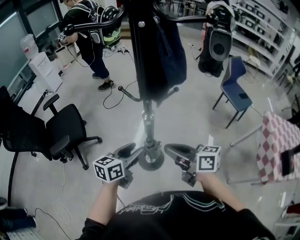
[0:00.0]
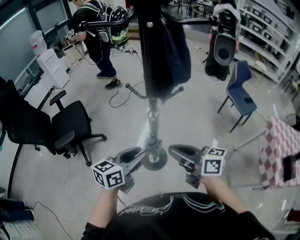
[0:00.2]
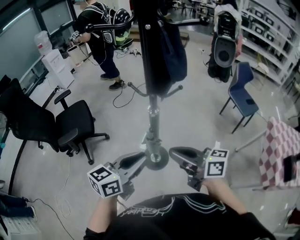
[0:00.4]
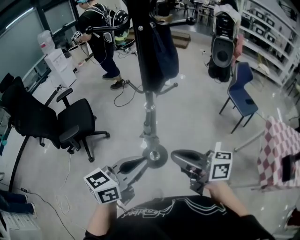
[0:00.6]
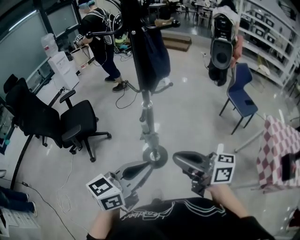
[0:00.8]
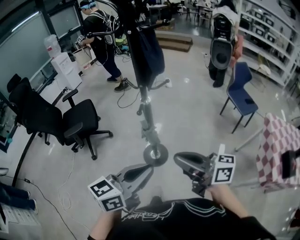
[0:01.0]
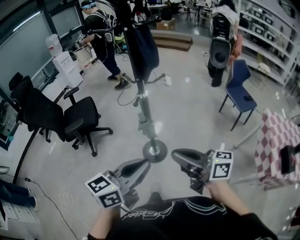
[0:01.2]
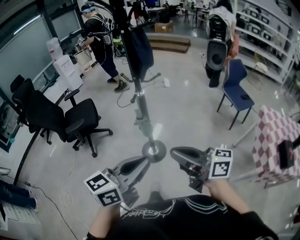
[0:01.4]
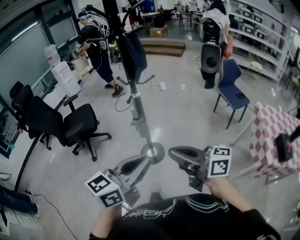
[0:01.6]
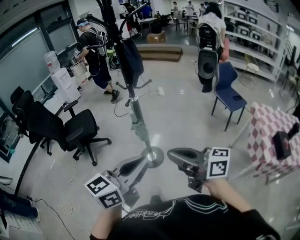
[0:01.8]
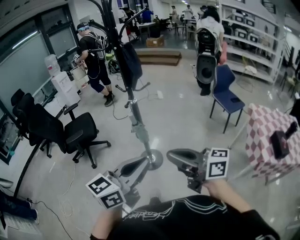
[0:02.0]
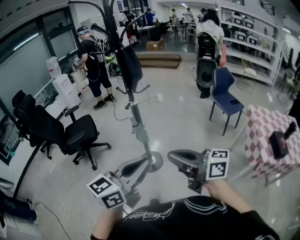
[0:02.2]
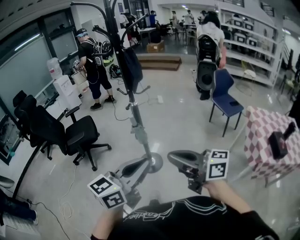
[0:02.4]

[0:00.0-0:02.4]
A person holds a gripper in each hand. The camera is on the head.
0:00.0 to 0:01.2: The two grippers go approximately 30 cm backward and upward. The left gripper closes.
0:01.2 to 0:02.4: Both grippers travel together backward and upward, some 15 cm.

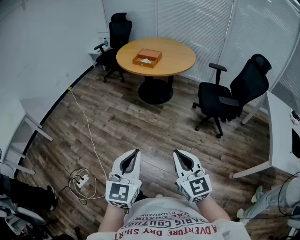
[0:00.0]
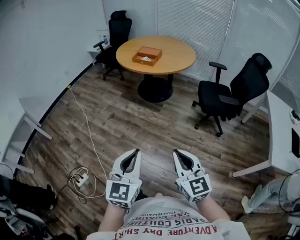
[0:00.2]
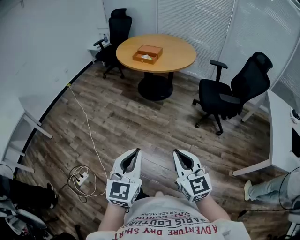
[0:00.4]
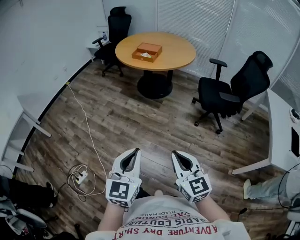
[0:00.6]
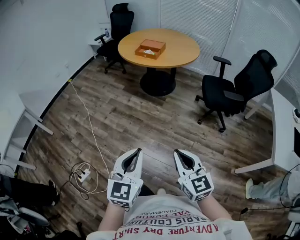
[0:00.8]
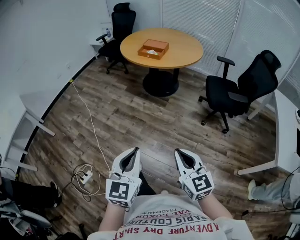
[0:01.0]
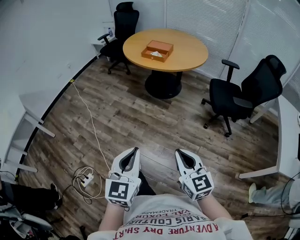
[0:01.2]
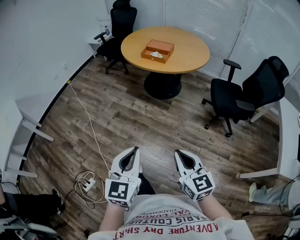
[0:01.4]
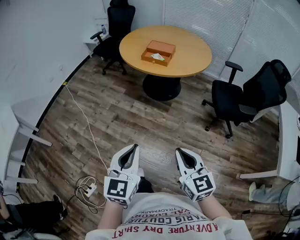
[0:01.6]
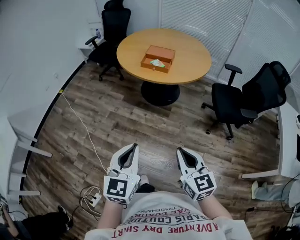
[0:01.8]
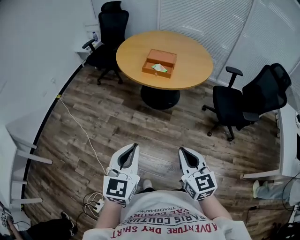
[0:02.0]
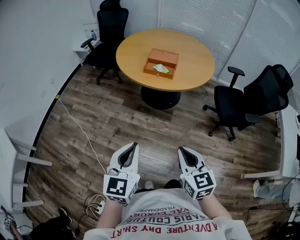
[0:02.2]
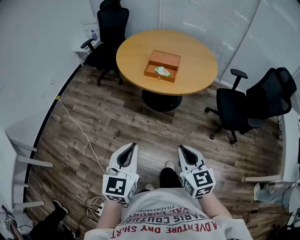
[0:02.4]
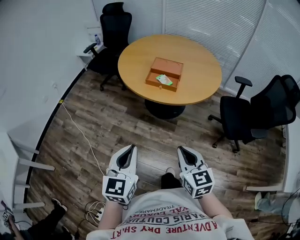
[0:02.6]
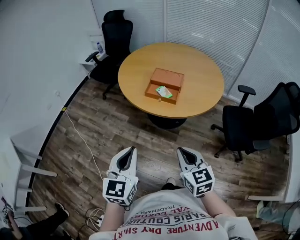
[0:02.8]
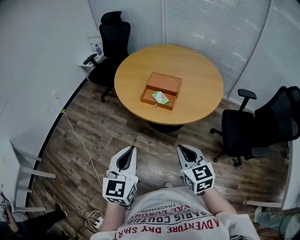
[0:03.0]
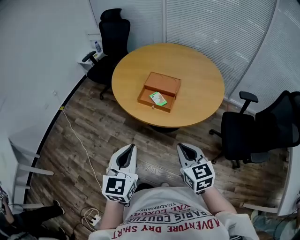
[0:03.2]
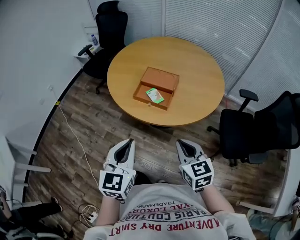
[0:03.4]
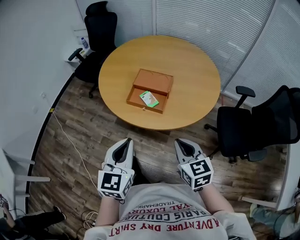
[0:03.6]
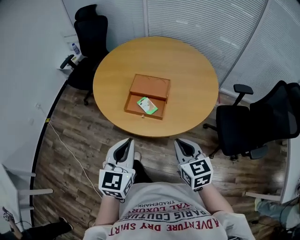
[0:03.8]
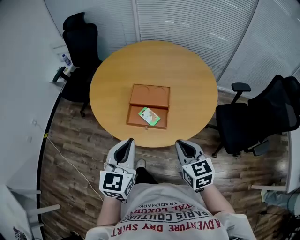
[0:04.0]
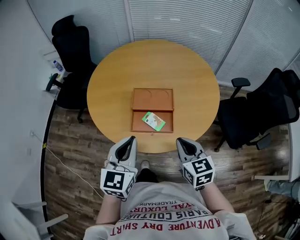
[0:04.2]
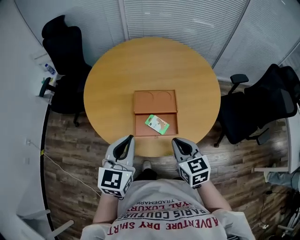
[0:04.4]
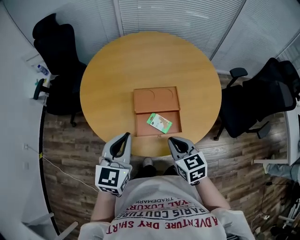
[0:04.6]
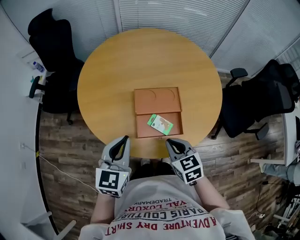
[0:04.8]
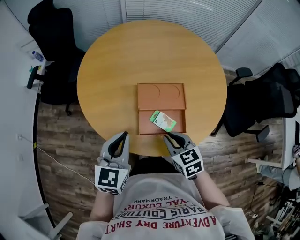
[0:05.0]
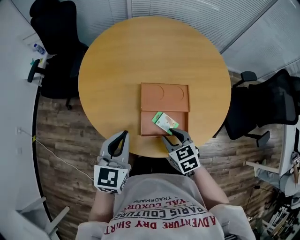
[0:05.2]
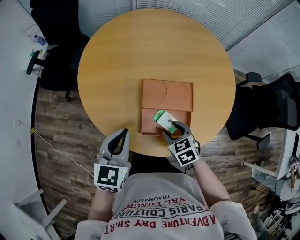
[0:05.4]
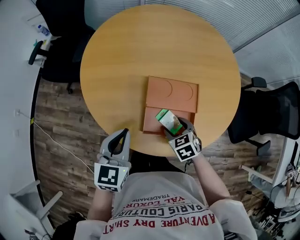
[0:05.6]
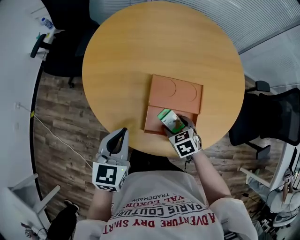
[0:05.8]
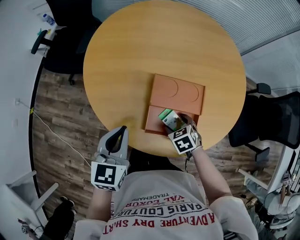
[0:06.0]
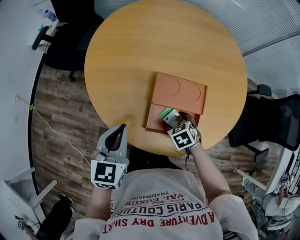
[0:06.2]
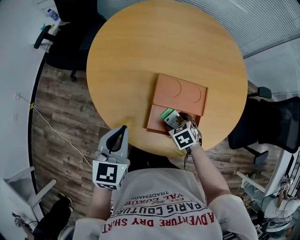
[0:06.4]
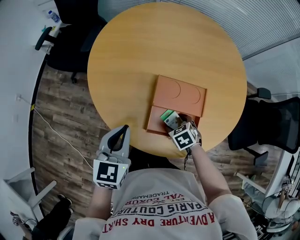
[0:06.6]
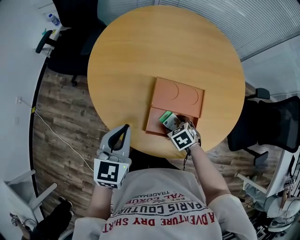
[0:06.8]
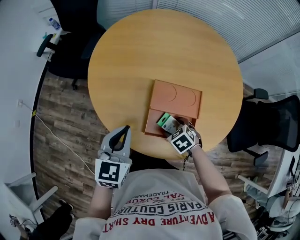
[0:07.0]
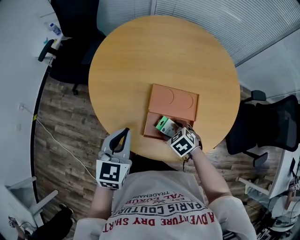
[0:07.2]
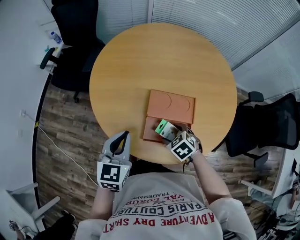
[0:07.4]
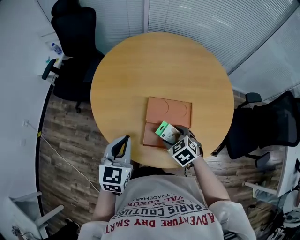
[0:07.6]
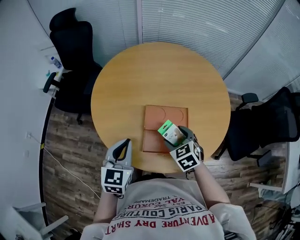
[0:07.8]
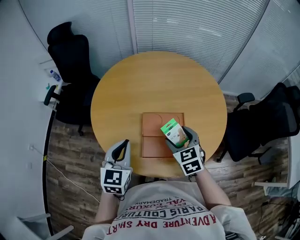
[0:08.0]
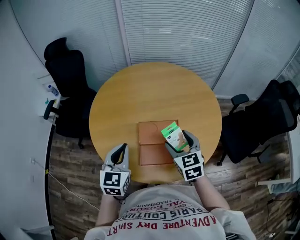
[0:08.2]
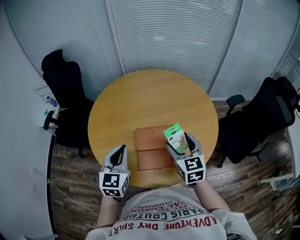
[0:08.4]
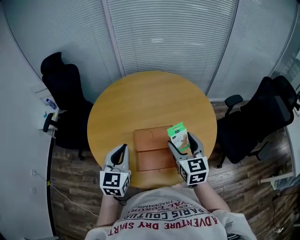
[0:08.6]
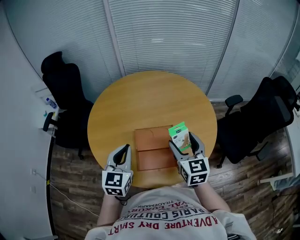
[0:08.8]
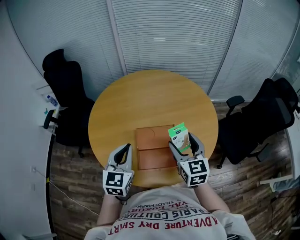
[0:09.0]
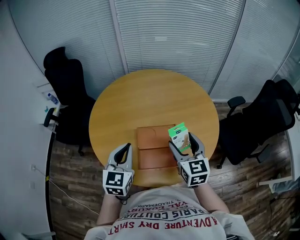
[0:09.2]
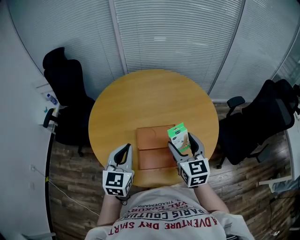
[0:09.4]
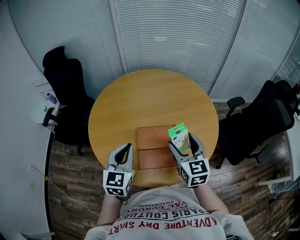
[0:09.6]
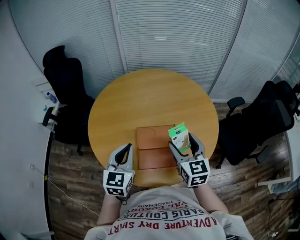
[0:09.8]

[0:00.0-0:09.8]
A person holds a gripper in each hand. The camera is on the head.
0:00.0 to 0:01.4: Both grippers travel together forward and to the left, roughly 20 cm.
0:01.4 to 0:02.8: The pair of grippers is taken forward, roughly 40 cm.
0:02.8 to 0:04.2: Both grippers move forward, some 35 cm. The left gripper changes its angle by about 20 degrees.
0:04.2 to 0:05.6: The right gripper heads downward, forward and to the left, covering roughly 25 cm, tips its fingers downward by some 30 degrees, and opens; the left gripper is displaced forward, to the left and downward by some 20 cm.
0:05.6 to 0:07.0: There are only small adjustments of the grippers.
0:07.0 to 0:08.4: The left gripper moves upward and to the right, roughly 10 cm. Meanwhile the right gripper goes some 30 cm upward, and points its fingers roughly 50 degrees further upward.
0:08.4 to 0:09.8: The grippers move only a little.

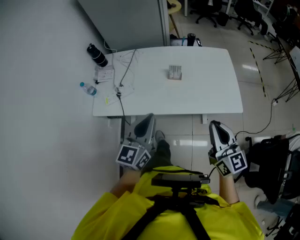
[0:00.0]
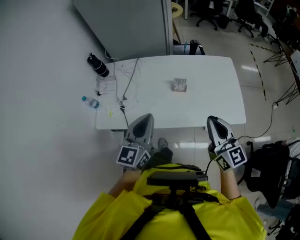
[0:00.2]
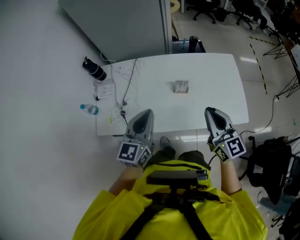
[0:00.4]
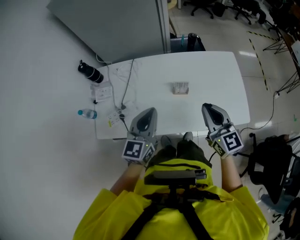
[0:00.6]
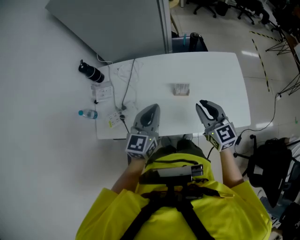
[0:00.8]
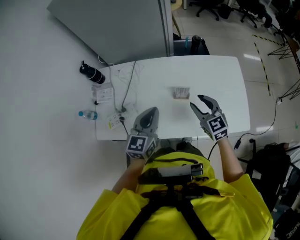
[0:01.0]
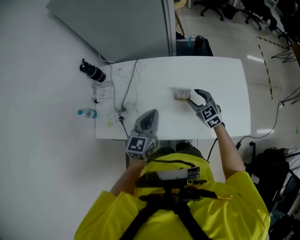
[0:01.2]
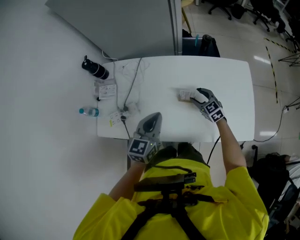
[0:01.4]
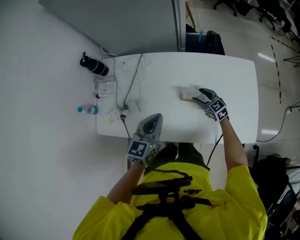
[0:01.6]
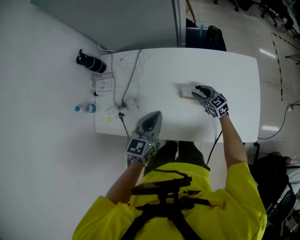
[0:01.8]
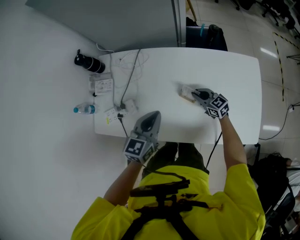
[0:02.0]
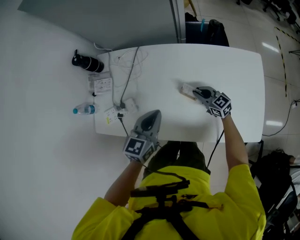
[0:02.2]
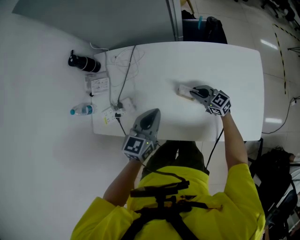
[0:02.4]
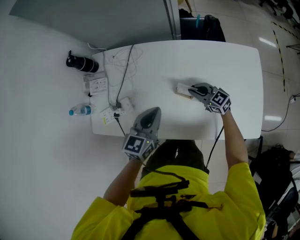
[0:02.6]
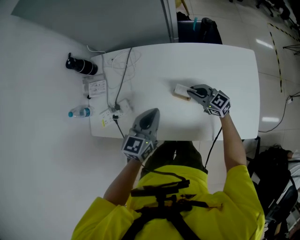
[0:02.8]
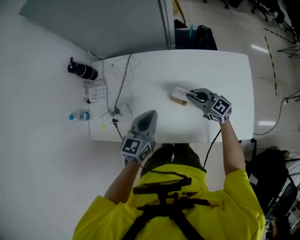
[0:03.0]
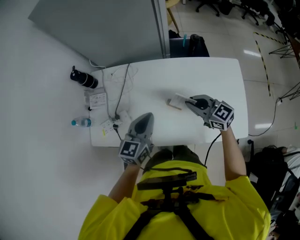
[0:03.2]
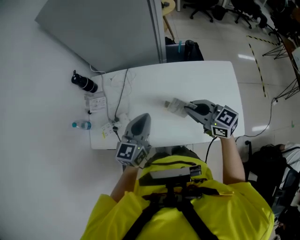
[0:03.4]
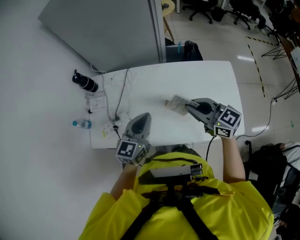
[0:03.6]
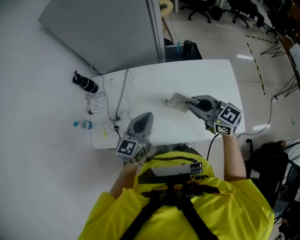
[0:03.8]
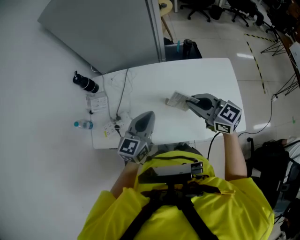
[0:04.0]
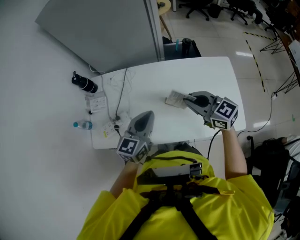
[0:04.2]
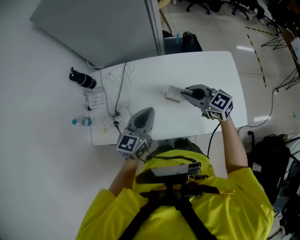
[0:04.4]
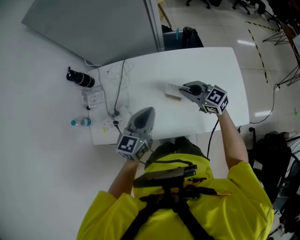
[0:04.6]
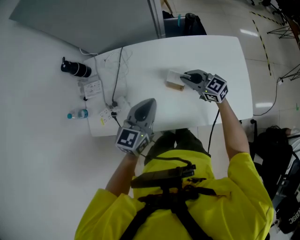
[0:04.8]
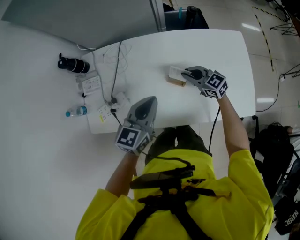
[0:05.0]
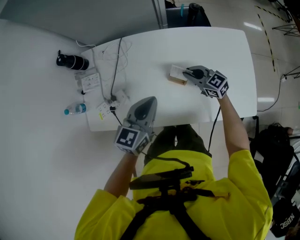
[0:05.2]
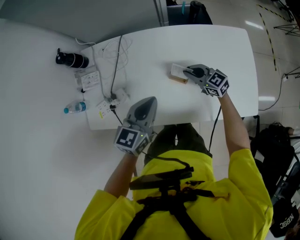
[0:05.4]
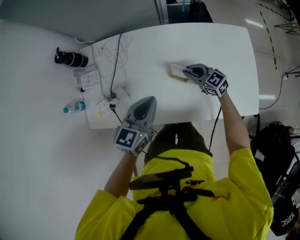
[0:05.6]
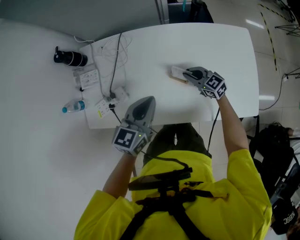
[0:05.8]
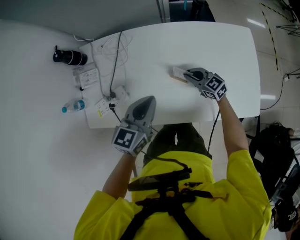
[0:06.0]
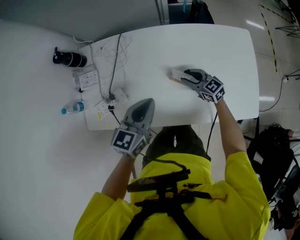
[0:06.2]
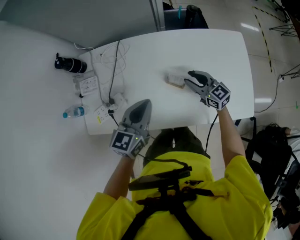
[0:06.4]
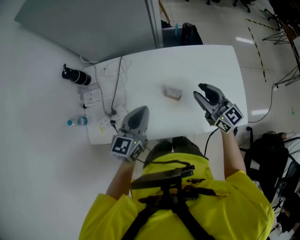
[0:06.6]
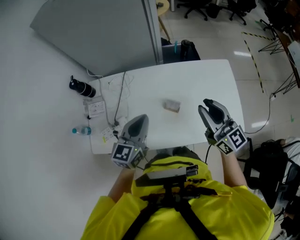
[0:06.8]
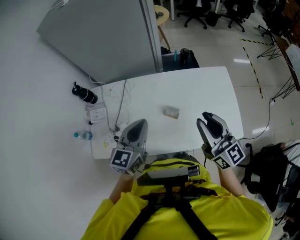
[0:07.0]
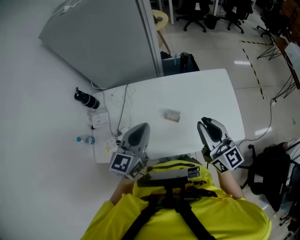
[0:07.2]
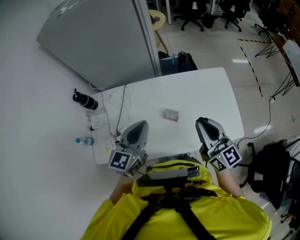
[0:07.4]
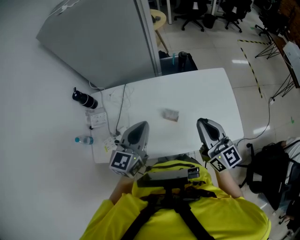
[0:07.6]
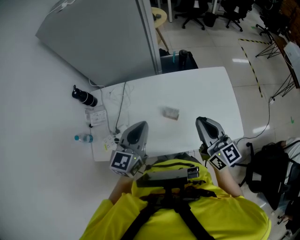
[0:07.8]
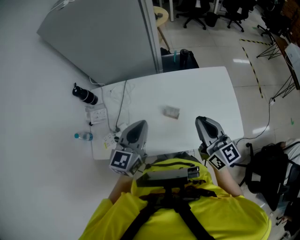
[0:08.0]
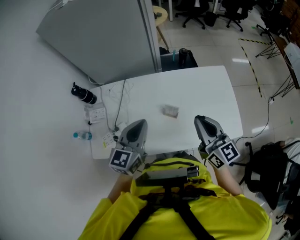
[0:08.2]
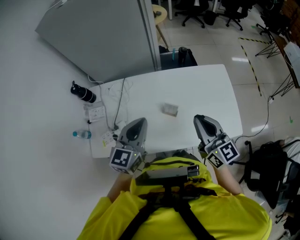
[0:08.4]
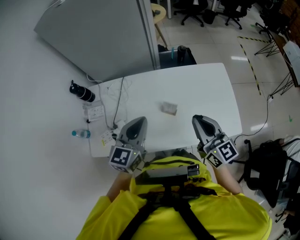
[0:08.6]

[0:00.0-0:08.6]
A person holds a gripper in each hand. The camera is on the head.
0:00.0 to 0:01.4: The left gripper travels forward by approximately 25 cm, while the right gripper is displaced forward and downward by about 50 cm, turns by approximately 40 degrees, and opens.
0:01.4 to 0:02.8: The left gripper heads downward, covering some 5 cm. Meanwhile the right gripper turns by roughly 30 degrees, and closes up.
0:02.8 to 0:04.4: The right gripper goes some 20 cm upward, while the left gripper shifts roughly 10 cm upward.
0:04.4 to 0:05.8: The left gripper heads downward, covering approximately 5 cm, while the right gripper travels downward by roughly 25 cm.
0:05.8 to 0:07.2: The left gripper is displaced upward by approximately 15 cm. Meanwhile the right gripper is displaced upward by some 35 cm, and tips its fingers upward by roughly 30 degrees.
0:07.2 to 0:08.6: The grippers stay close to where they were, moving slightly.

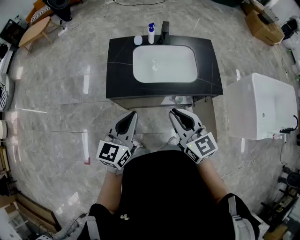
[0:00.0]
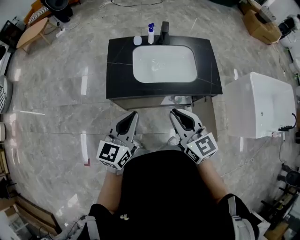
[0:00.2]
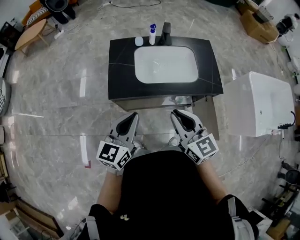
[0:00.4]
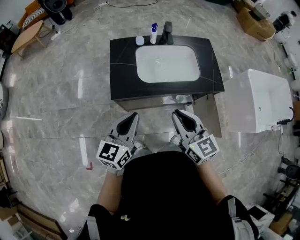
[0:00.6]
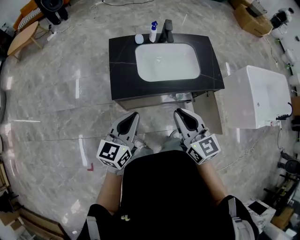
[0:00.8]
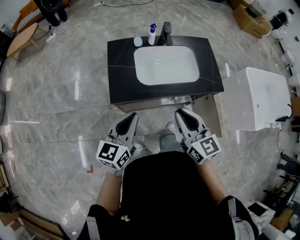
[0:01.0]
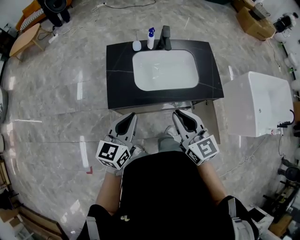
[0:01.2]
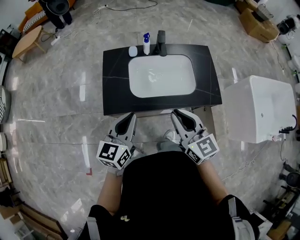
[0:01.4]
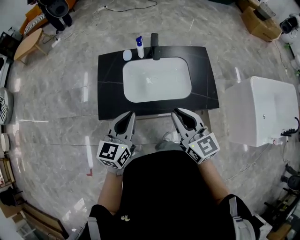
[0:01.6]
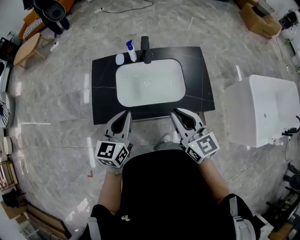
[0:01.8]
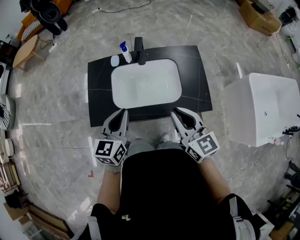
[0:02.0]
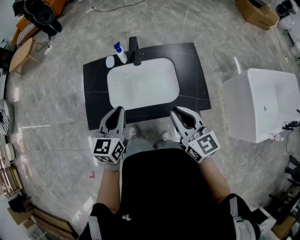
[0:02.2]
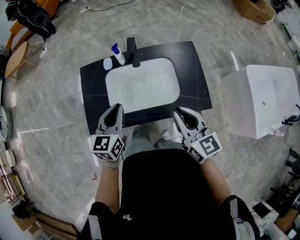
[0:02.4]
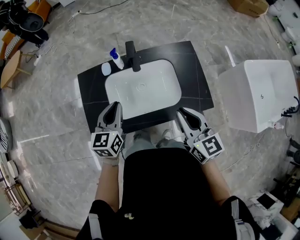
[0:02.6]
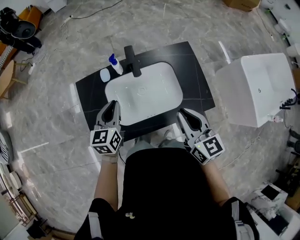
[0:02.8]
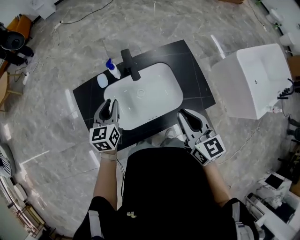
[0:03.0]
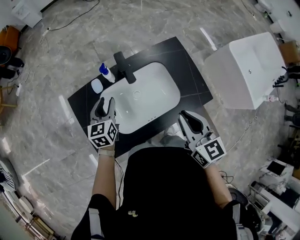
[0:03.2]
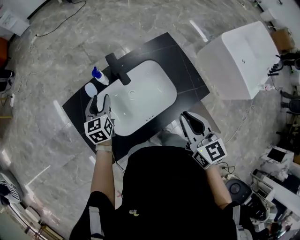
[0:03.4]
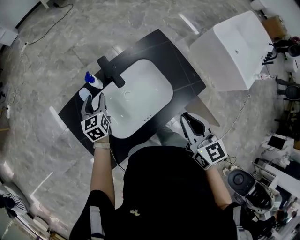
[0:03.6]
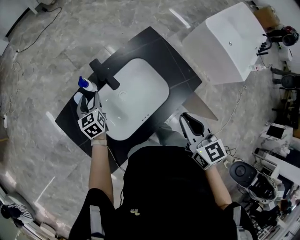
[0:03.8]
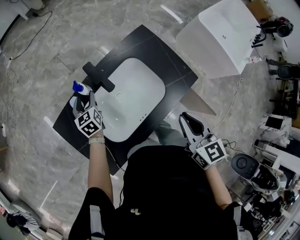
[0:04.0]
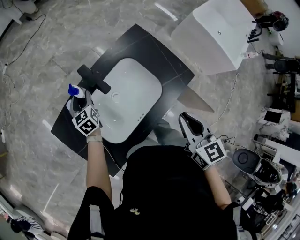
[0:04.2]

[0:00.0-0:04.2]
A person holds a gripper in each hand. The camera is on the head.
0:00.0 to 0:01.4: The grippers both shift forward by roughly 10 cm.
0:01.4 to 0:02.8: The right gripper heads forward and to the right, covering approximately 20 cm; the left gripper shifts roughly 25 cm forward.
0:02.8 to 0:04.2: The right gripper changes its angle by roughly 30 degrees, while the left gripper heads forward and downward, covering some 25 cm, and opens up.
